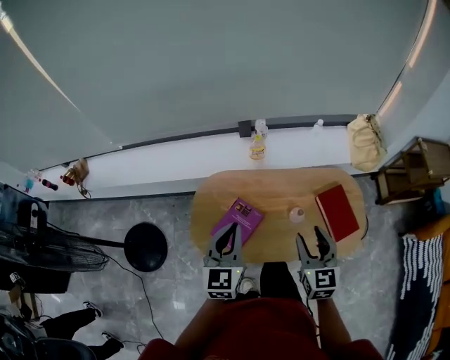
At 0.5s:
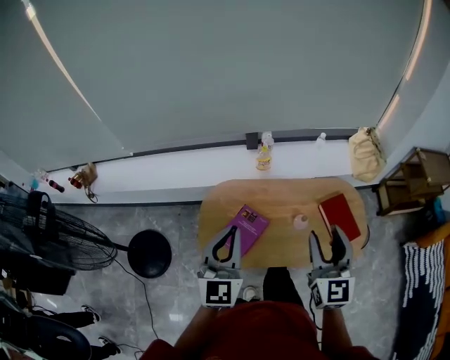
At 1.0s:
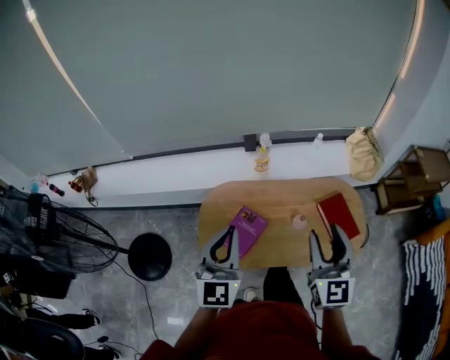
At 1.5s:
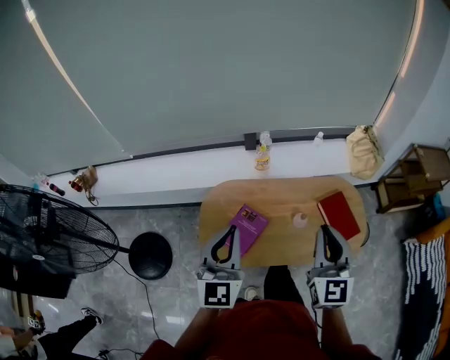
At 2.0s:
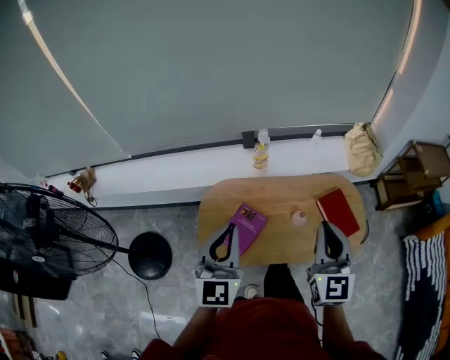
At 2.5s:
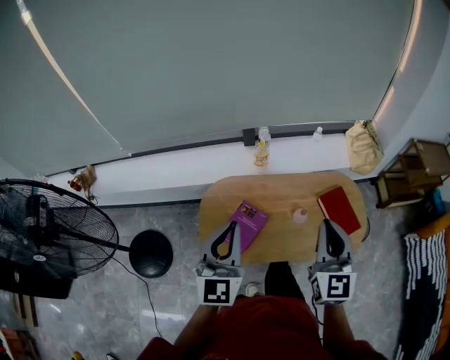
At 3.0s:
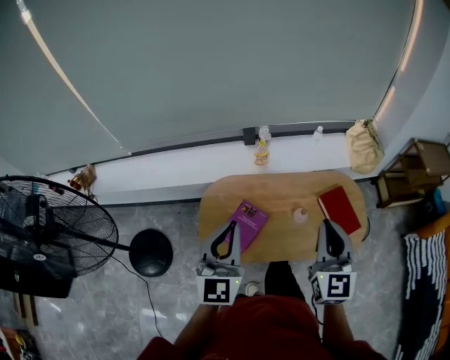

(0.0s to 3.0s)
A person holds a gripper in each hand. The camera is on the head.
0.0s - 1.5s: The right gripper travels upward by some 15 cm, and closes, while the left gripper travels upward and backward by some 10 cm.
1.5s - 3.0s: Both grippers stay about where they are.

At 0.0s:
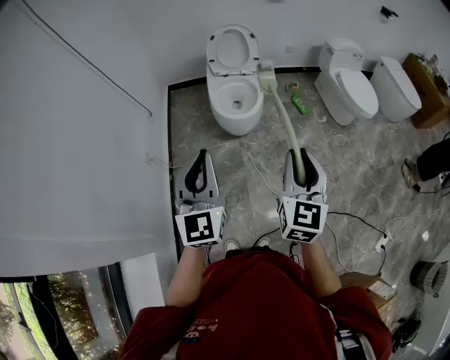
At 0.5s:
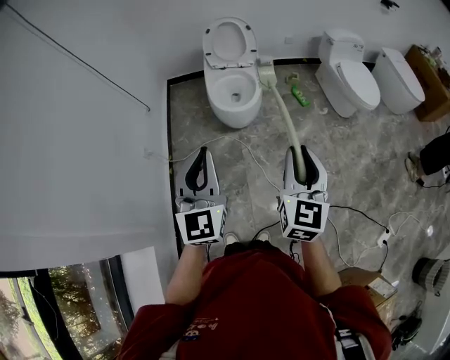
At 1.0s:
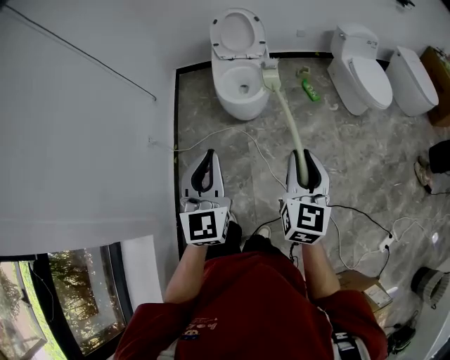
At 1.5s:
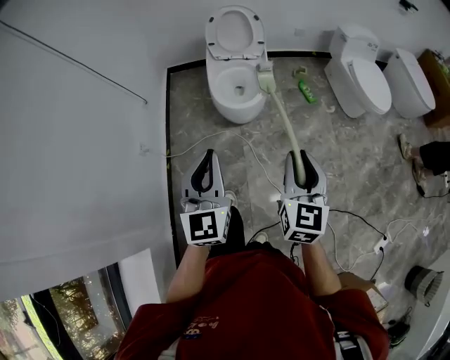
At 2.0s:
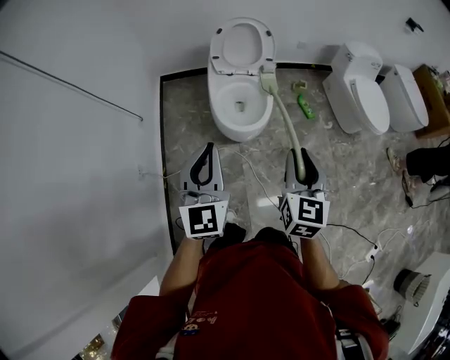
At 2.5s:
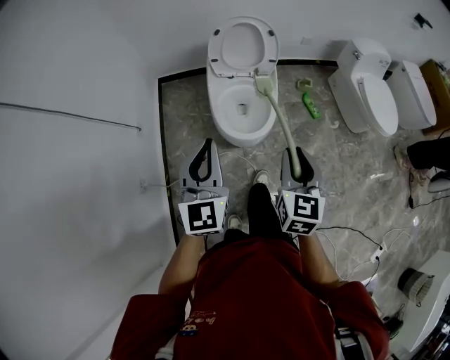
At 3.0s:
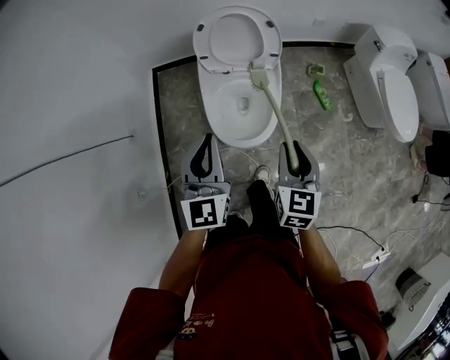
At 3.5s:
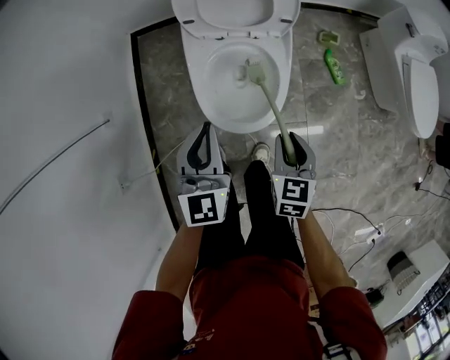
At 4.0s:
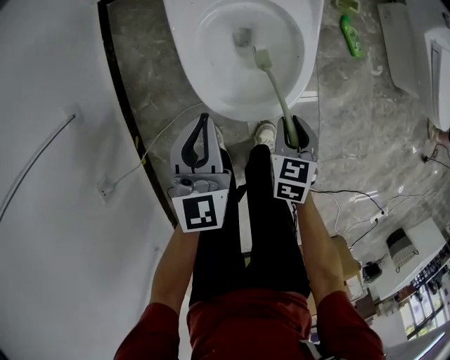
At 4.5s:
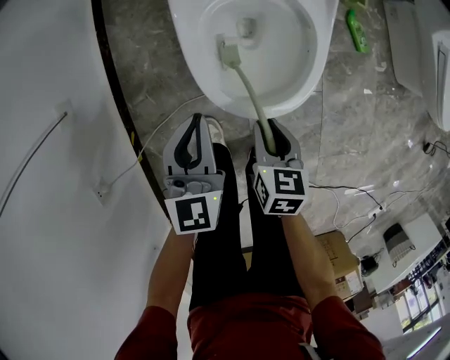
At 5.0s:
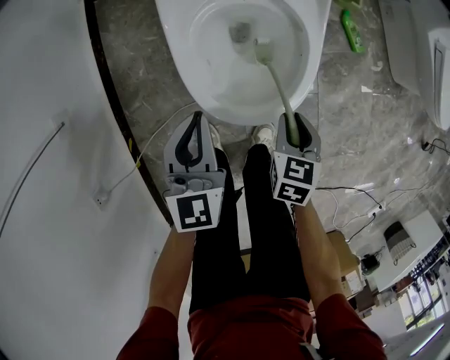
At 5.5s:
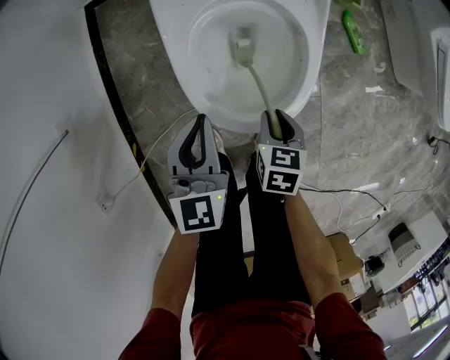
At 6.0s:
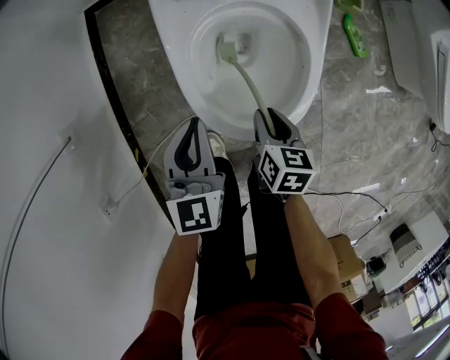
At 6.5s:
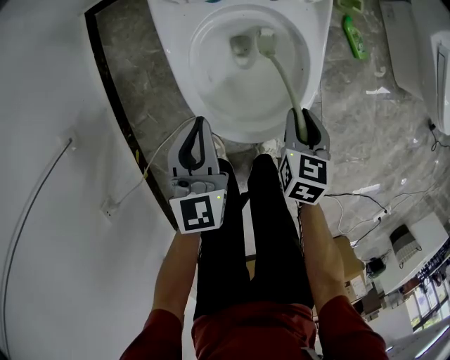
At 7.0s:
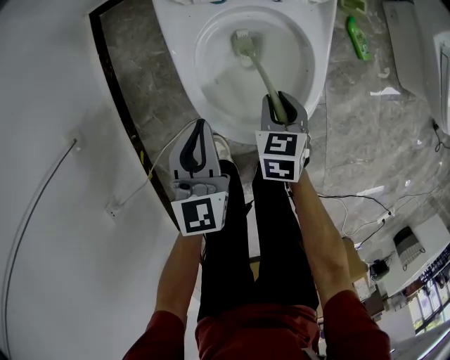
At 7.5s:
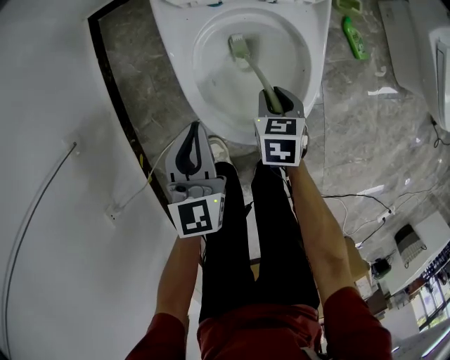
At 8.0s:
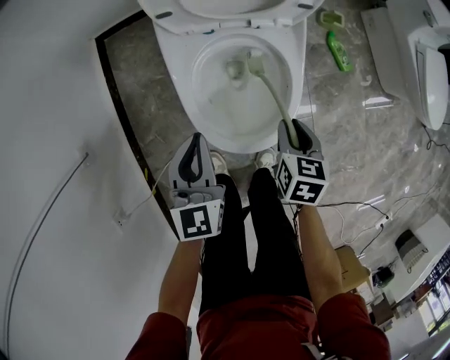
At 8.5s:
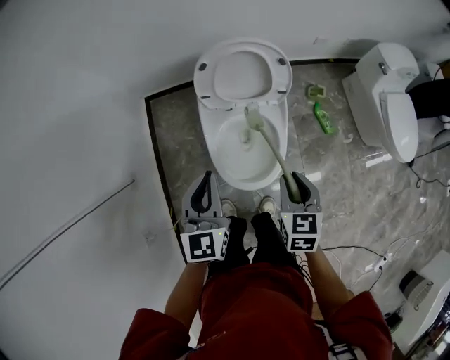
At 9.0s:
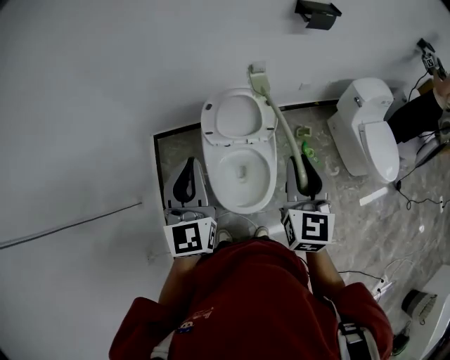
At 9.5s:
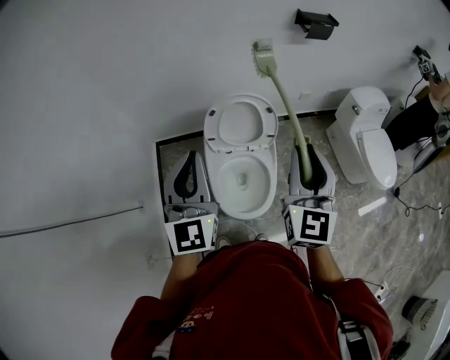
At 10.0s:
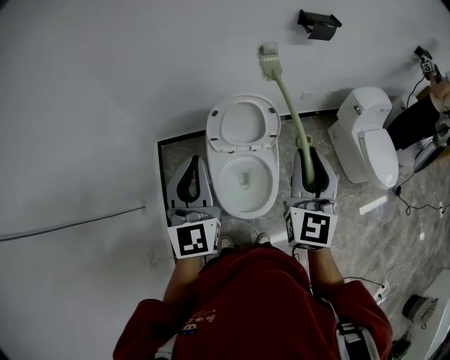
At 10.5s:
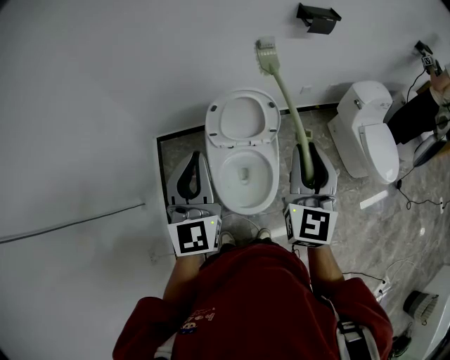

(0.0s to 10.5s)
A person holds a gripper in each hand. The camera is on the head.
0.0s - 2.0s: Both grippers move forward, roughly 20 cm.
2.0s - 4.0s: Both grippers travel together downward and forward, roughly 50 cm. The left gripper rotates approximately 20 degrees. The right gripper tips its fingers downward by some 40 degrees.
4.0s - 6.5s: The left gripper moves downward, roughly 5 cm. Meanwhile the right gripper swings left and right, approximately 10 cm each way, with 3 reversals.
6.5s - 8.5s: Both grippers travel together upward, roughly 30 cm.
8.5s - 10.5s: Both grippers move upward, about 25 cm. The left gripper swivels about 20 degrees; the right gripper angles its fingers upward, by roughly 40 degrees.

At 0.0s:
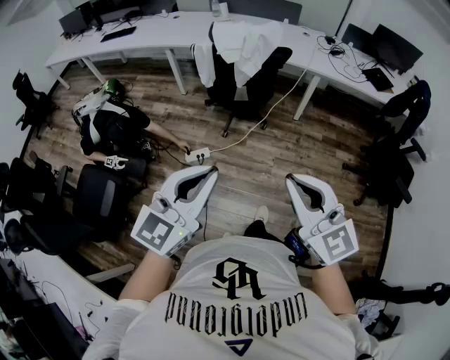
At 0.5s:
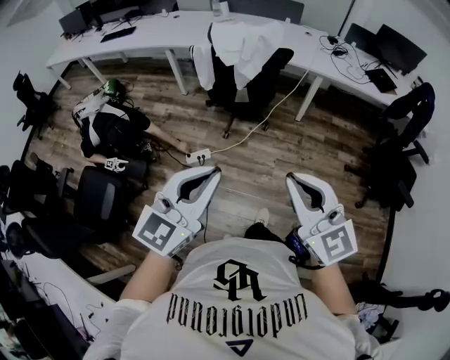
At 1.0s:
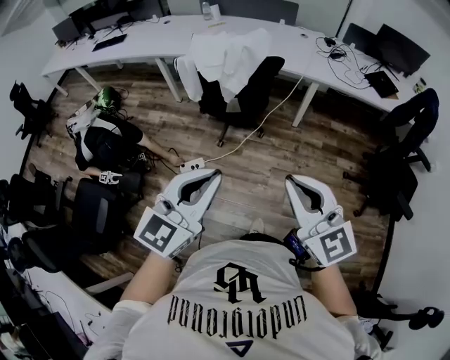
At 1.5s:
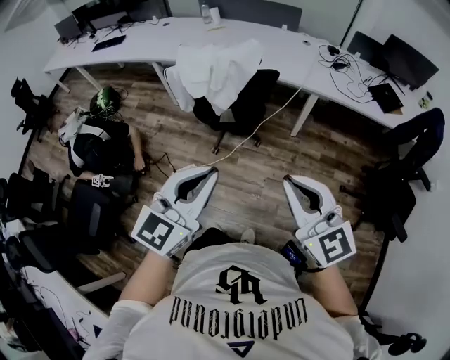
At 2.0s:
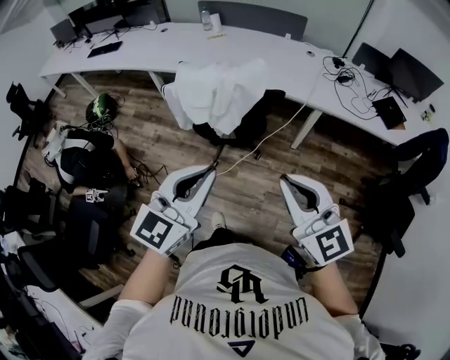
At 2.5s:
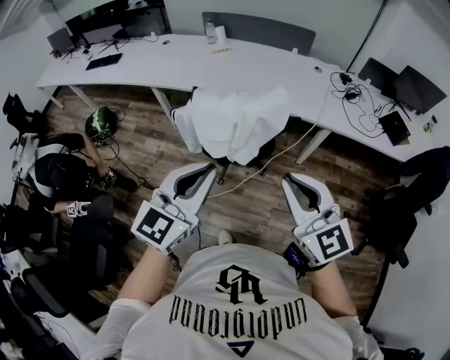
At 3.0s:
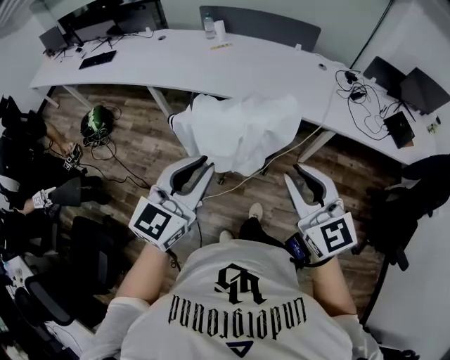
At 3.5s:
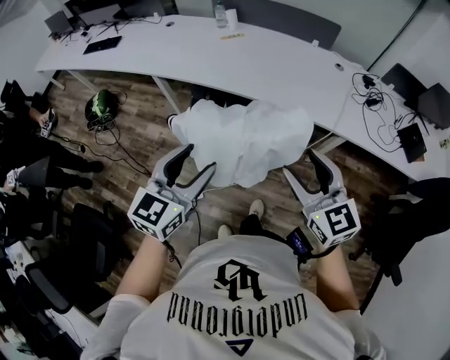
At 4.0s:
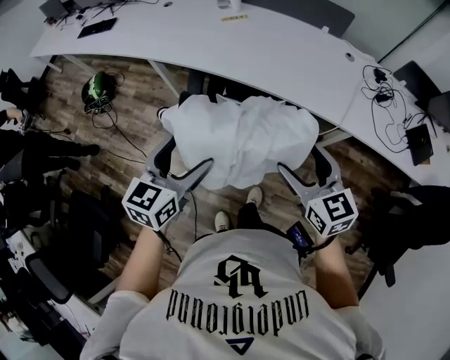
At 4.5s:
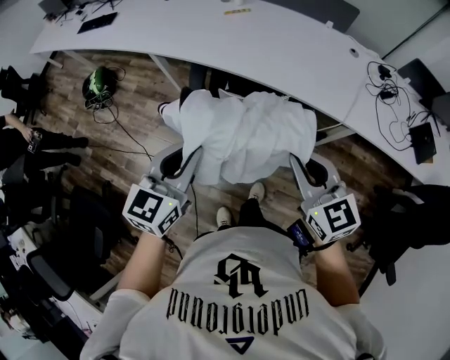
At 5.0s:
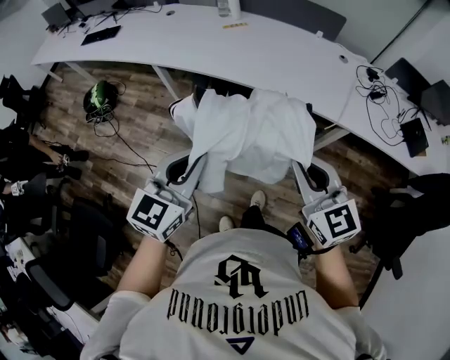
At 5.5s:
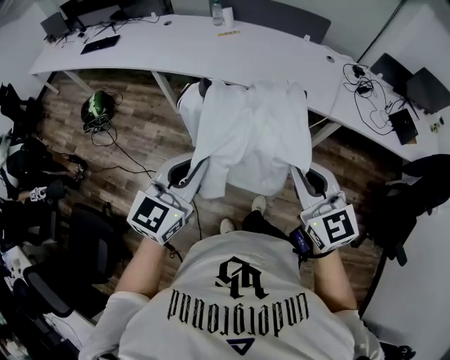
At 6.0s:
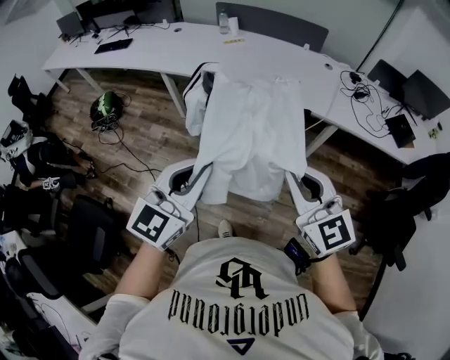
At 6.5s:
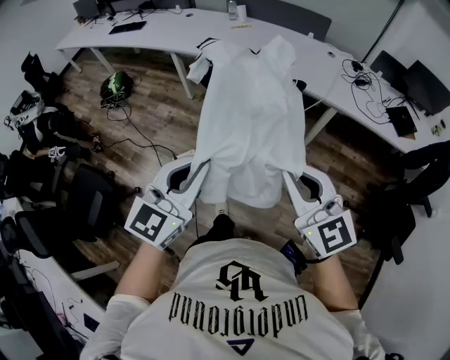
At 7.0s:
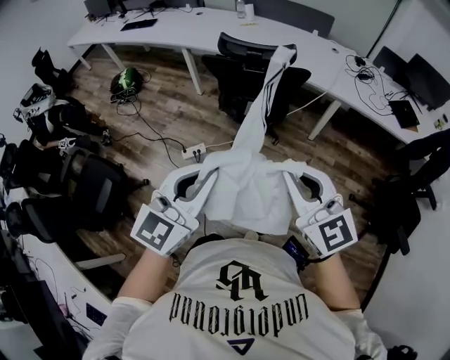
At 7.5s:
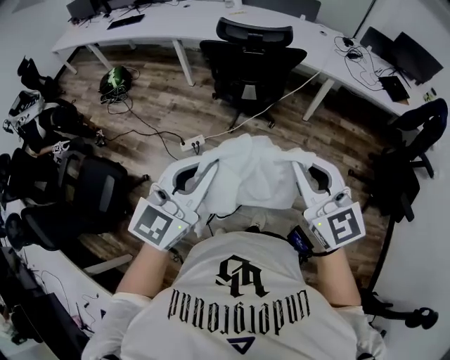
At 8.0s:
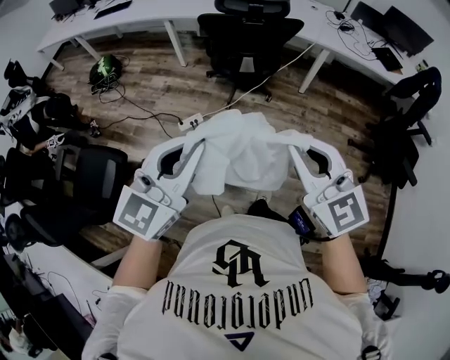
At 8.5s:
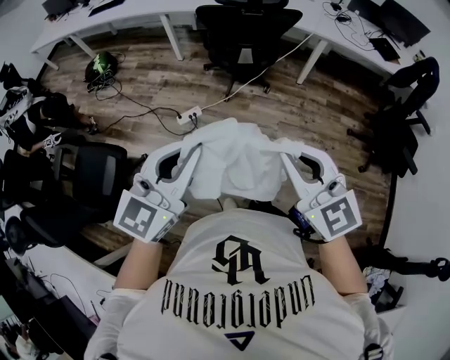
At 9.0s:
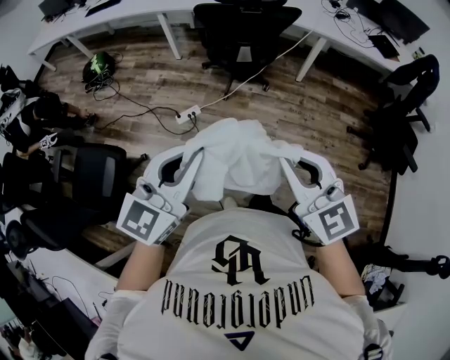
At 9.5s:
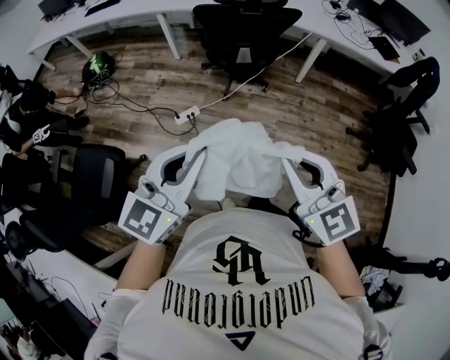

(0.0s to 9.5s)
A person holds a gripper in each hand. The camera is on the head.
0.0s - 2.0s: The two grippers go approximately 35 cm forward.
2.0s - 4.0s: The right gripper goes some 35 cm forward, swivels about 20 degrees, and opens up. Meanwhile the left gripper travels forward and downward by about 35 cm, changes its angle by roughly 30 degrees, and opens its fingers.
4.0s - 5.5s: The left gripper heads backward and upward, covering roughly 15 cm, turns by roughly 20 degrees, and closes; the right gripper travels backward, upward and to the left by roughly 20 cm, and closes up.
5.5s - 7.5s: The grippers both shift backward by approximately 40 cm.
7.5s - 9.5s: The left gripper moves to the left and backward, approximately 10 cm. Meanwhile the right gripper travels backward and to the left by about 15 cm.

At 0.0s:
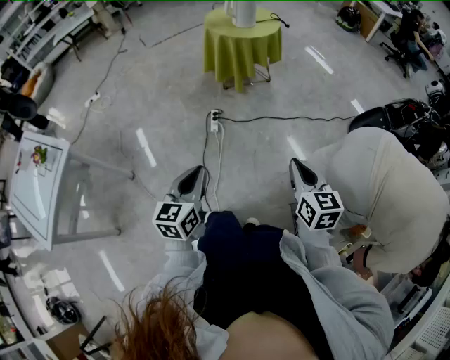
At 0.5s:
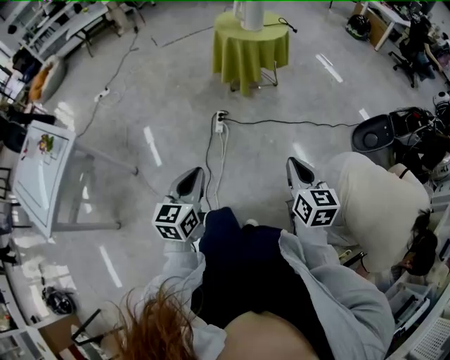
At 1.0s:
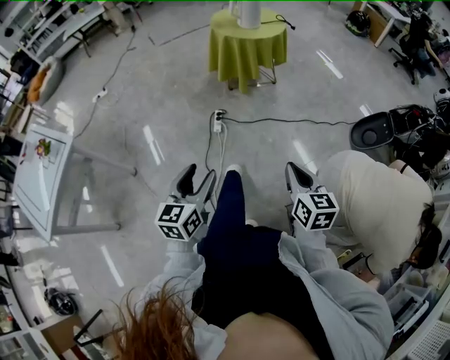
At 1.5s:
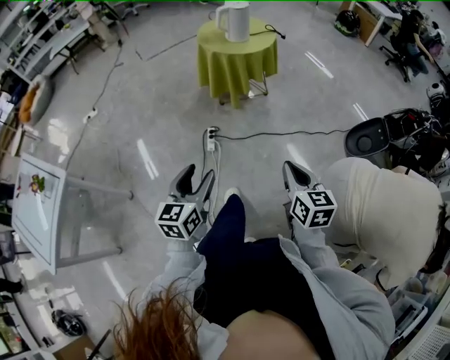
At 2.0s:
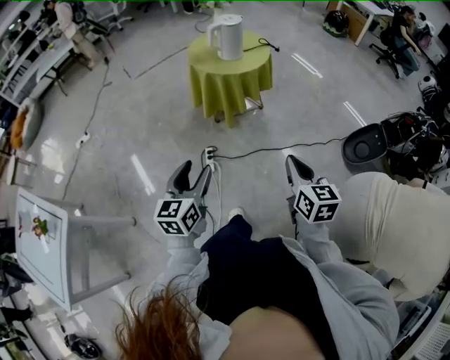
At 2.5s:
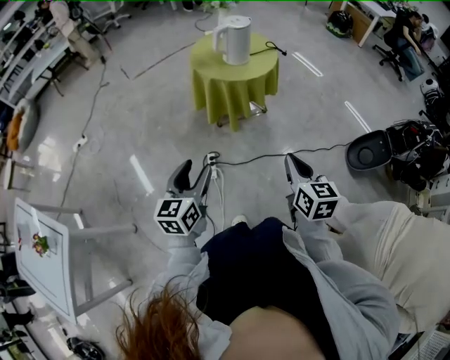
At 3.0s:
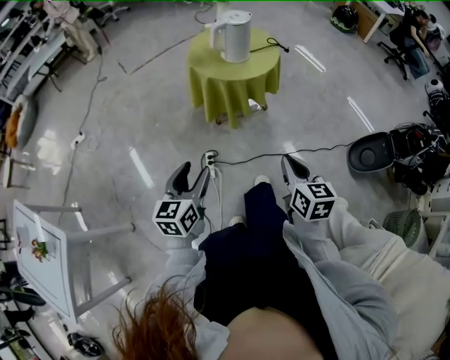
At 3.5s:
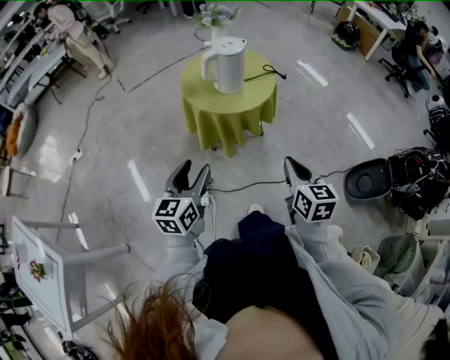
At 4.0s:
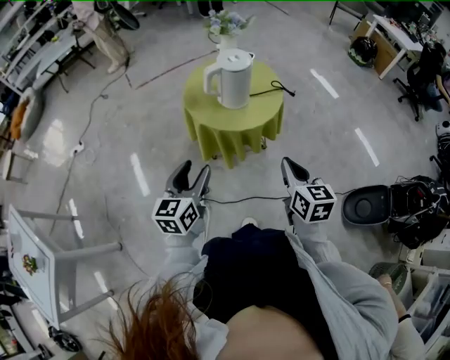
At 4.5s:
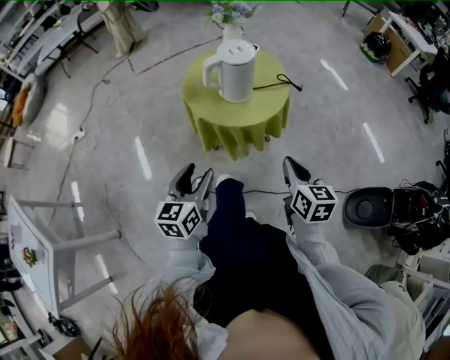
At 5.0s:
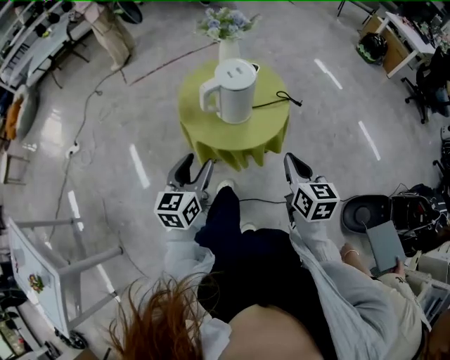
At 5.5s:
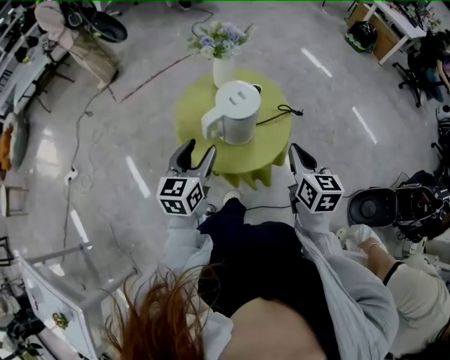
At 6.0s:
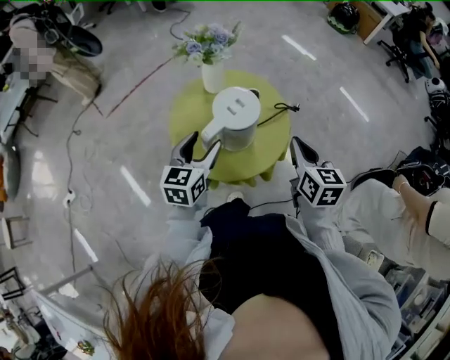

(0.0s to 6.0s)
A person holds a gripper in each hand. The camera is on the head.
0.0s - 2.0s: The grippers both shift forward by about 25 cm. The left gripper opens up.
2.0s - 4.0s: Both grippers move forward, about 35 cm.
4.0s - 6.0s: The grippers both shift forward by approximately 30 cm. The left gripper changes its angle by some 20 degrees.
